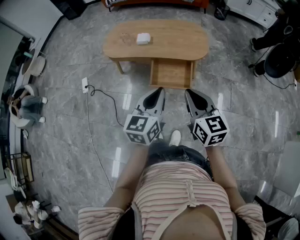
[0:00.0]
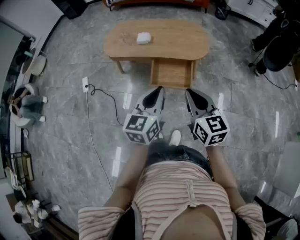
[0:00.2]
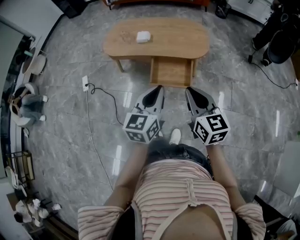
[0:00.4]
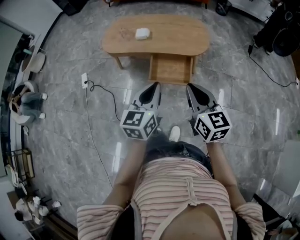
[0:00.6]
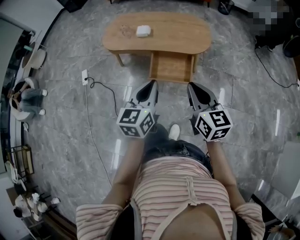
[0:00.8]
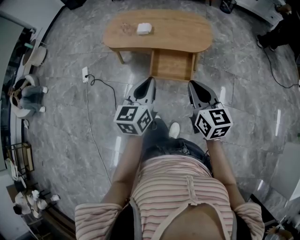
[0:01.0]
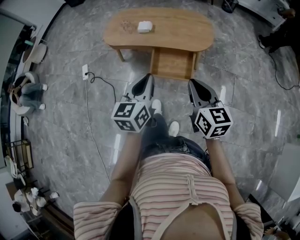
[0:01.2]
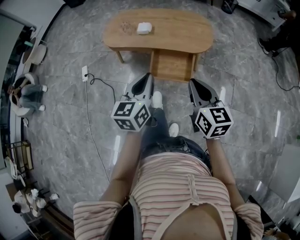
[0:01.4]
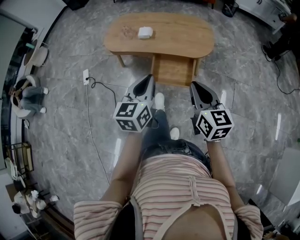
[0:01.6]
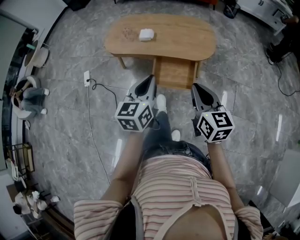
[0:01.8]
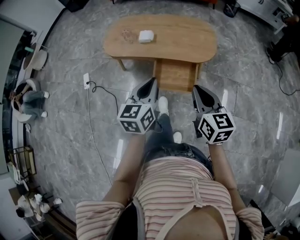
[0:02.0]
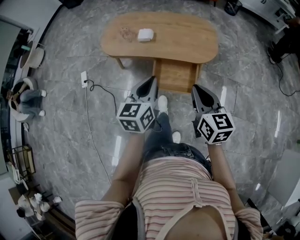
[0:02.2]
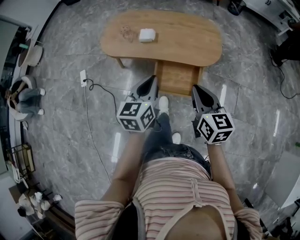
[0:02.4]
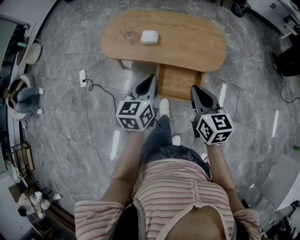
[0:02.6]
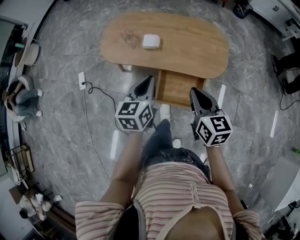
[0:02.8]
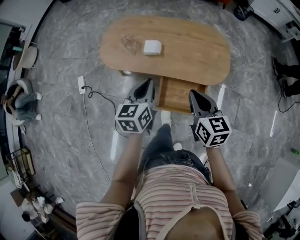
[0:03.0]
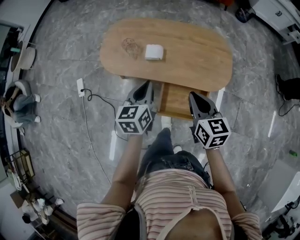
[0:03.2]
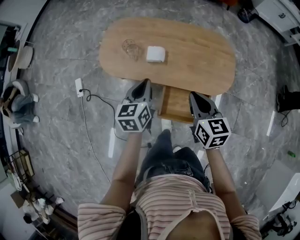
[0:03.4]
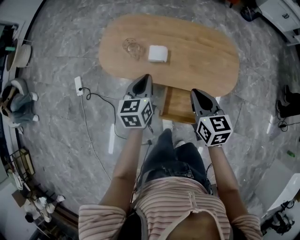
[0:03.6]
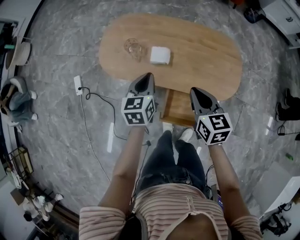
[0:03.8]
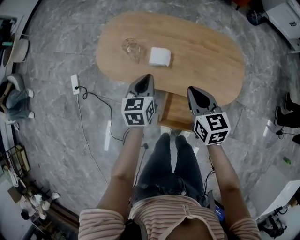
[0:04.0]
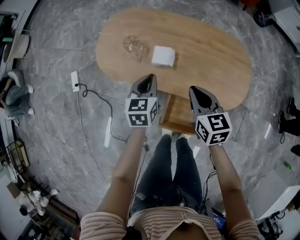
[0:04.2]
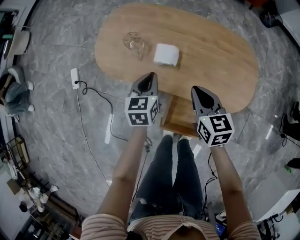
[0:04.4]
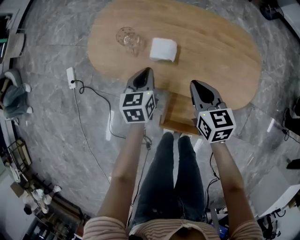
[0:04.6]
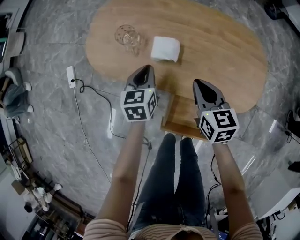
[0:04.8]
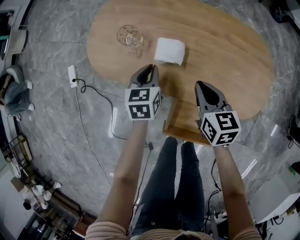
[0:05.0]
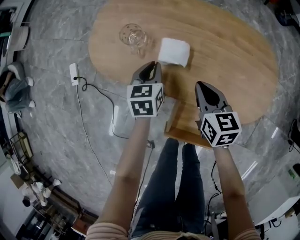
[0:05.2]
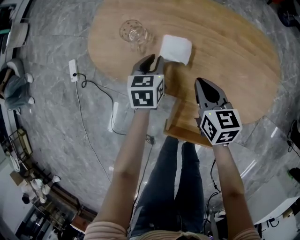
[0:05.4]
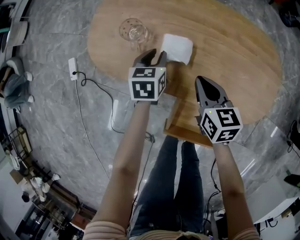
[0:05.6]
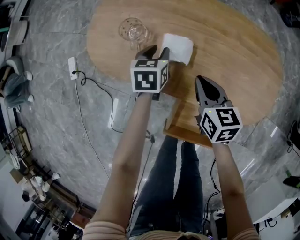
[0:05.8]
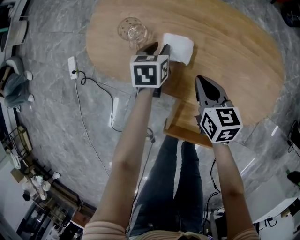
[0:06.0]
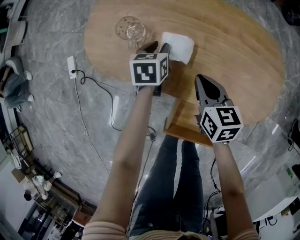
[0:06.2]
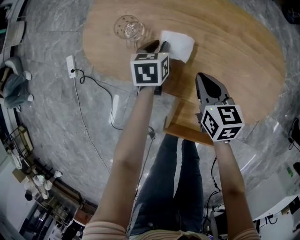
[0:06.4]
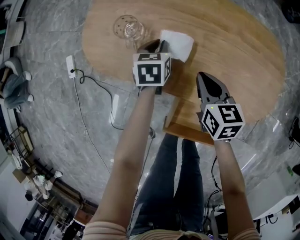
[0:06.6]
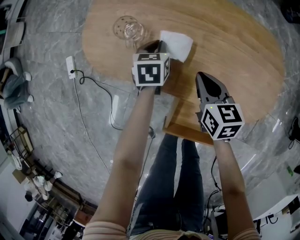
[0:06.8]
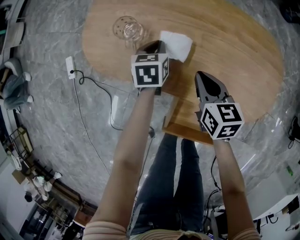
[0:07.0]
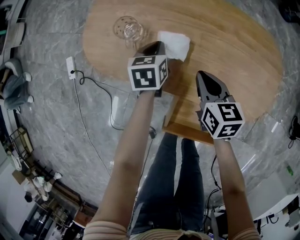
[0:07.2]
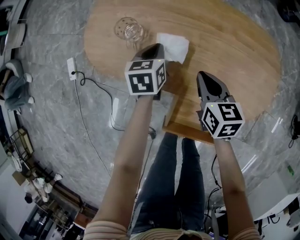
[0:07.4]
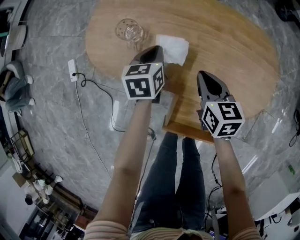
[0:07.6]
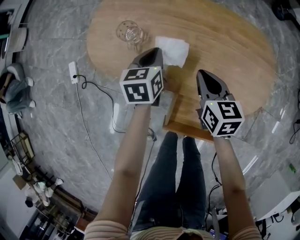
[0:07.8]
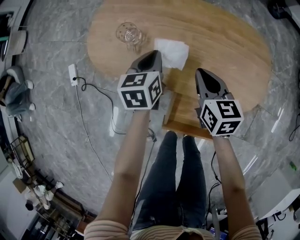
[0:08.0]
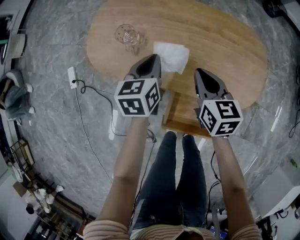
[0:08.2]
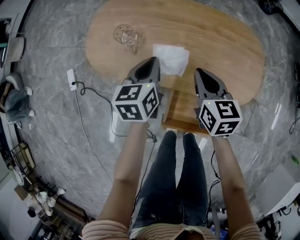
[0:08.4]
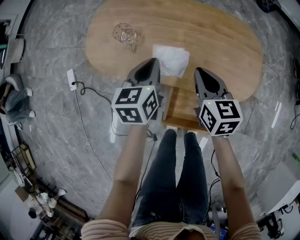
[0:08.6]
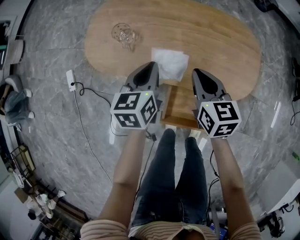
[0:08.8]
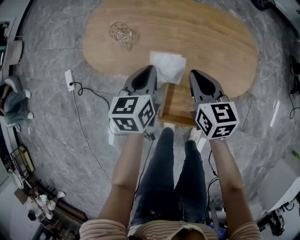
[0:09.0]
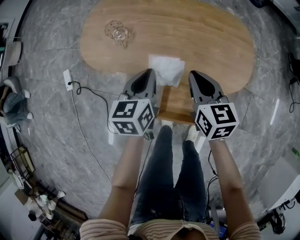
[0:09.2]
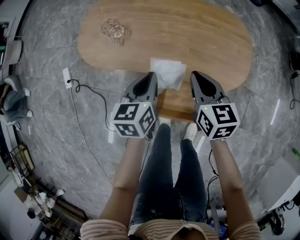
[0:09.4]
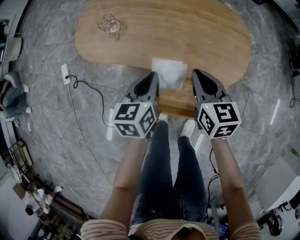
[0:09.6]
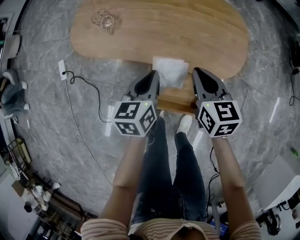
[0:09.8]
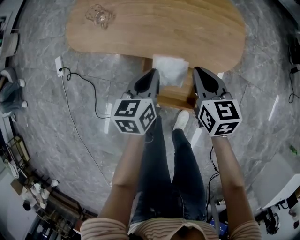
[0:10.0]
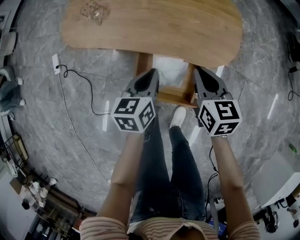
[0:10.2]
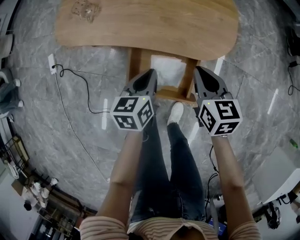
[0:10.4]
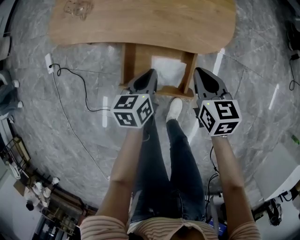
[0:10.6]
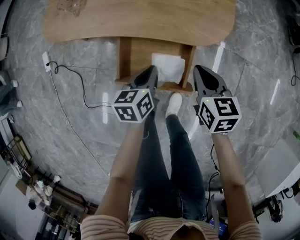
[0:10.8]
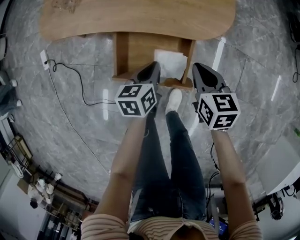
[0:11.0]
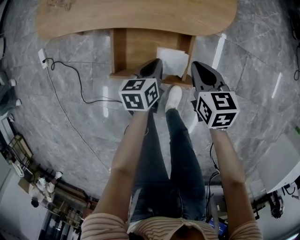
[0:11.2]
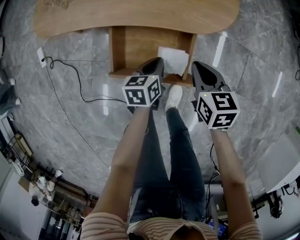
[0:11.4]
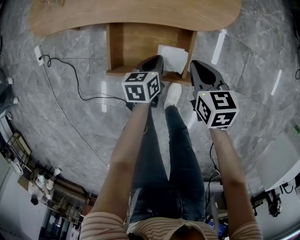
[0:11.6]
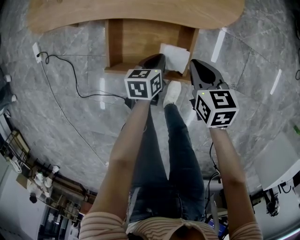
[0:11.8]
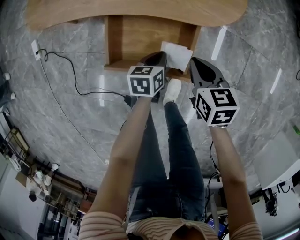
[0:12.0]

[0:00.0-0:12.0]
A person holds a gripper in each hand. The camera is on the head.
0:00.0 to 0:01.6: Both grippers travel together forward, some 5 cm.
0:01.6 to 0:03.0: The grippers both shift forward by roughly 25 cm.
0:03.0 to 0:04.4: The right gripper is displaced forward and downward by roughly 25 cm; the left gripper goes roughly 30 cm downward and forward.
0:04.4 to 0:06.0: Both grippers travel together downward and forward, some 15 cm. The left gripper opens up.
0:06.0 to 0:07.6: The left gripper is displaced upward by about 5 cm, and closes up.
0:07.6 to 0:09.0: The left gripper is displaced backward and upward by about 15 cm. The right gripper shifts about 10 cm upward and backward.
0:09.0 to 0:10.4: The right gripper is displaced to the right and backward by approximately 25 cm, while the left gripper goes some 25 cm to the right, backward and downward.
0:10.4 to 0:12.0: The right gripper goes approximately 15 cm downward and backward, while the left gripper moves downward, some 20 cm.

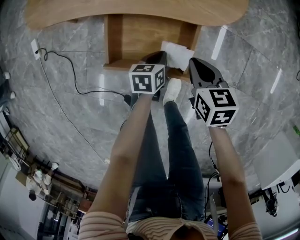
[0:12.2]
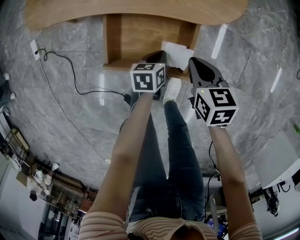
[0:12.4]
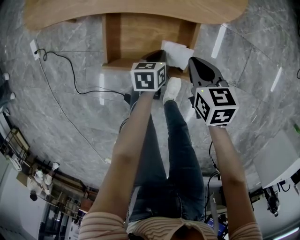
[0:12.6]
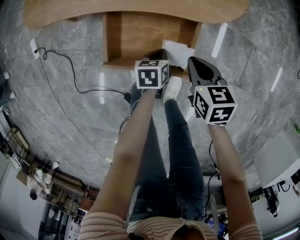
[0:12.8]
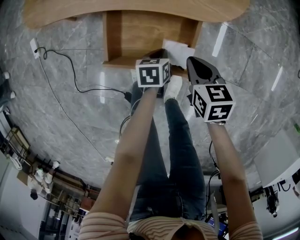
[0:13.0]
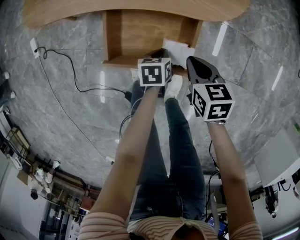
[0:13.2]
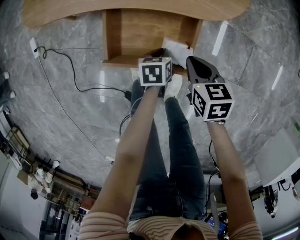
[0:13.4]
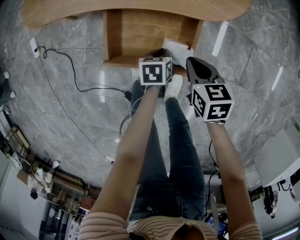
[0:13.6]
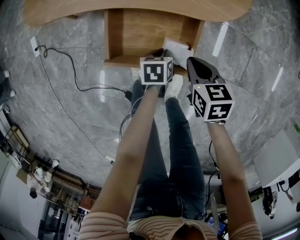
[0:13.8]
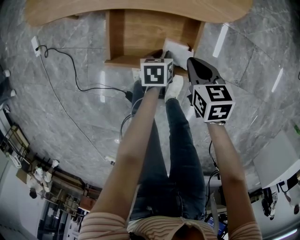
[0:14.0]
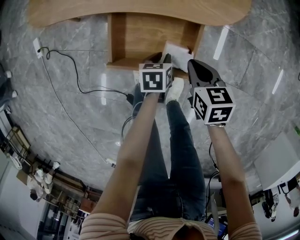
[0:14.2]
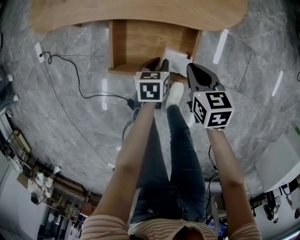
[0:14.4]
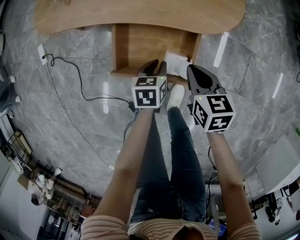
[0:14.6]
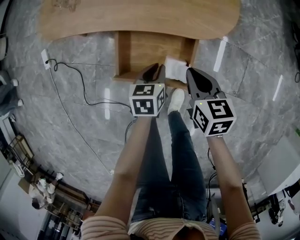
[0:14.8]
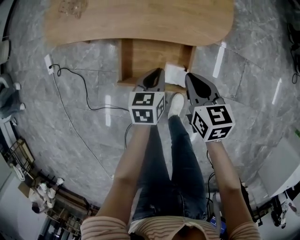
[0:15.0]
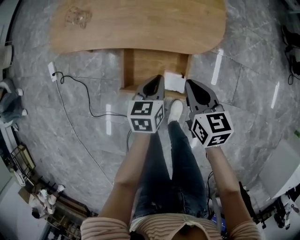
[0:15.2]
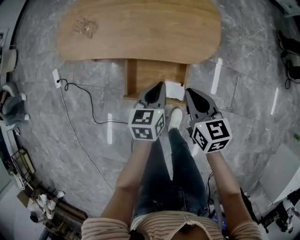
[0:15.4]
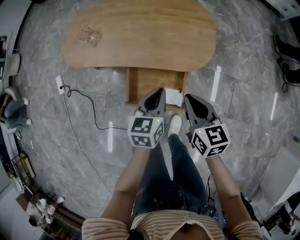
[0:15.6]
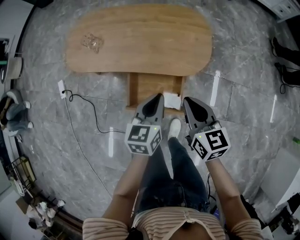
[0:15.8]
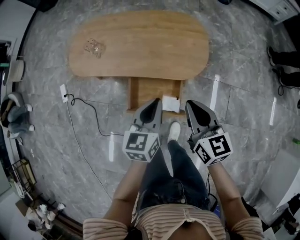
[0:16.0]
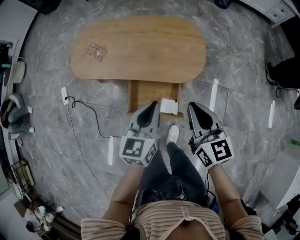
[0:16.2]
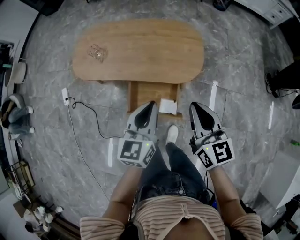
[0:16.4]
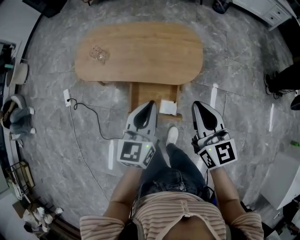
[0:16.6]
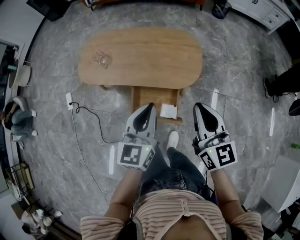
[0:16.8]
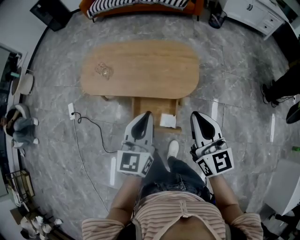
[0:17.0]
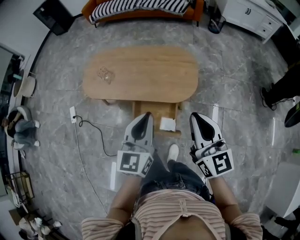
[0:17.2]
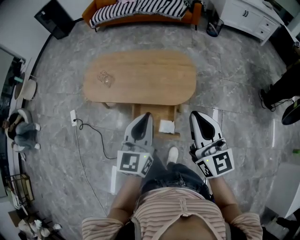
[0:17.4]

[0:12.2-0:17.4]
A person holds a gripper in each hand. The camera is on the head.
0:12.2 to 0:14.0: The grippers move only a little.
0:14.0 to 0:15.6: Both grippers travel together upward, approximately 30 cm. The right gripper turns by some 20 degrees, while the left gripper turns by about 30 degrees.
0:15.6 to 0:17.4: Both grippers travel together upward, roughly 25 cm. The left gripper rotates some 30 degrees; the right gripper tilts its fingers approximately 30 degrees upward.

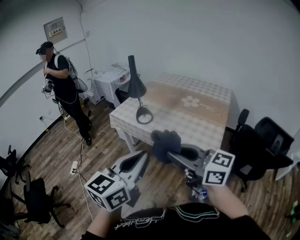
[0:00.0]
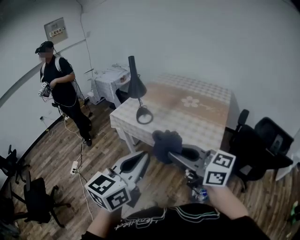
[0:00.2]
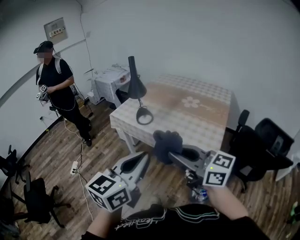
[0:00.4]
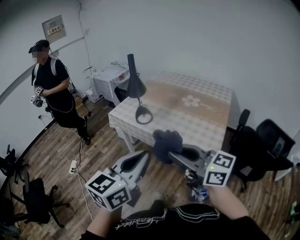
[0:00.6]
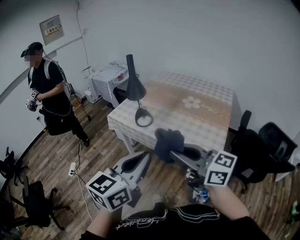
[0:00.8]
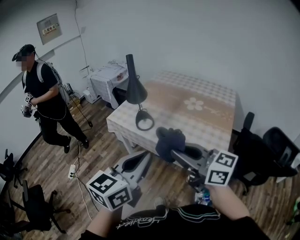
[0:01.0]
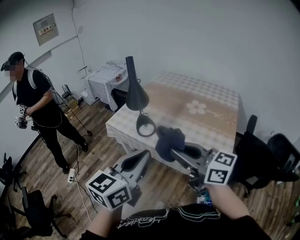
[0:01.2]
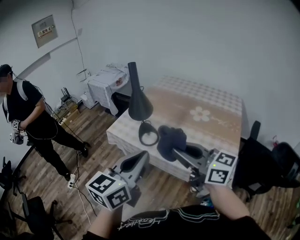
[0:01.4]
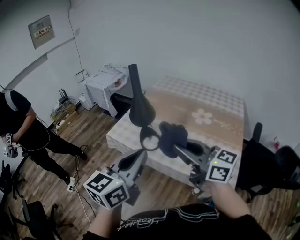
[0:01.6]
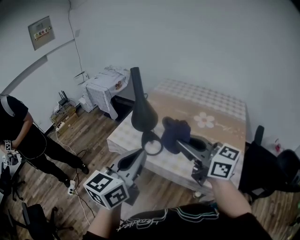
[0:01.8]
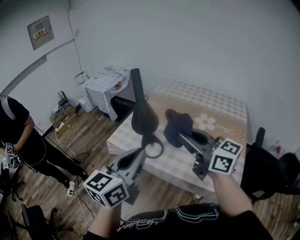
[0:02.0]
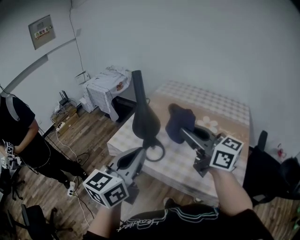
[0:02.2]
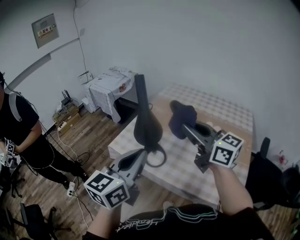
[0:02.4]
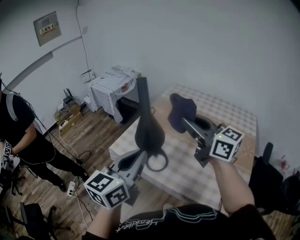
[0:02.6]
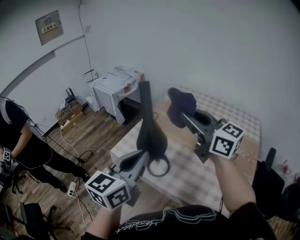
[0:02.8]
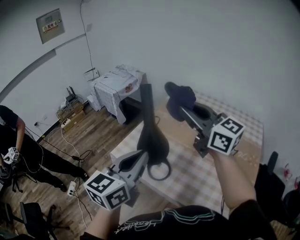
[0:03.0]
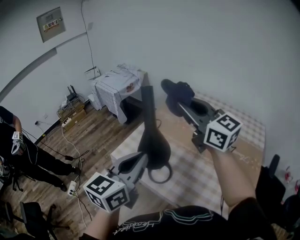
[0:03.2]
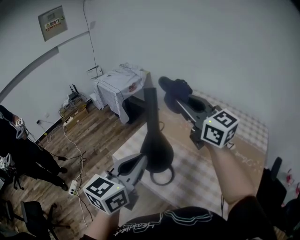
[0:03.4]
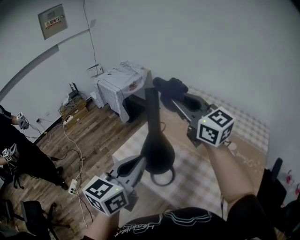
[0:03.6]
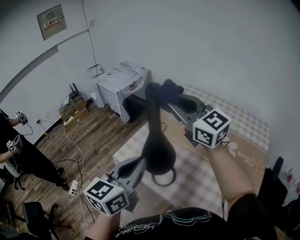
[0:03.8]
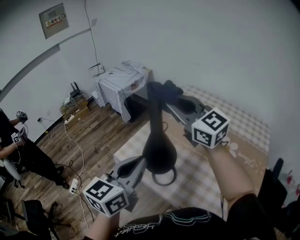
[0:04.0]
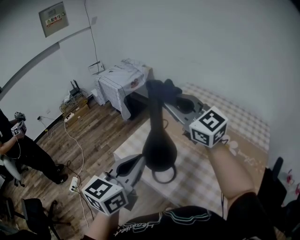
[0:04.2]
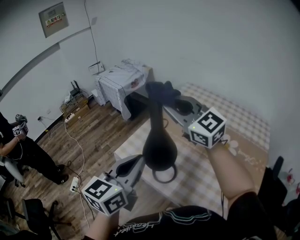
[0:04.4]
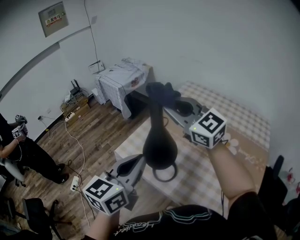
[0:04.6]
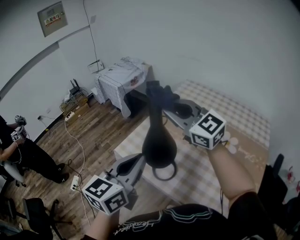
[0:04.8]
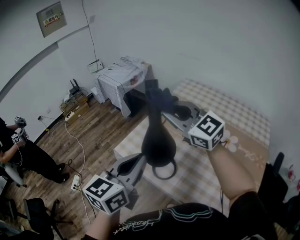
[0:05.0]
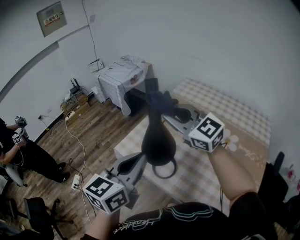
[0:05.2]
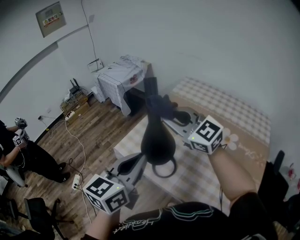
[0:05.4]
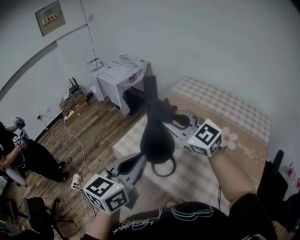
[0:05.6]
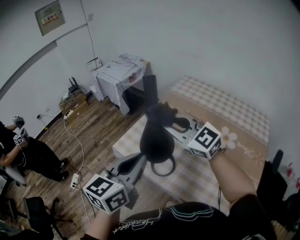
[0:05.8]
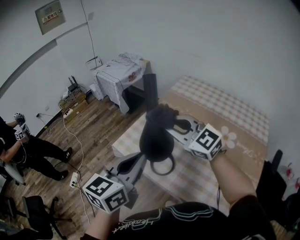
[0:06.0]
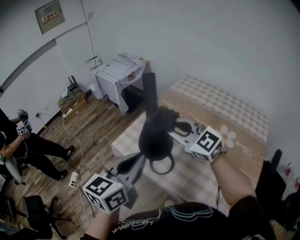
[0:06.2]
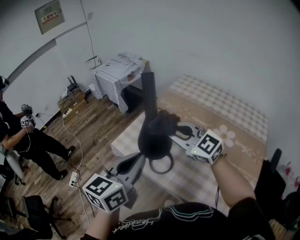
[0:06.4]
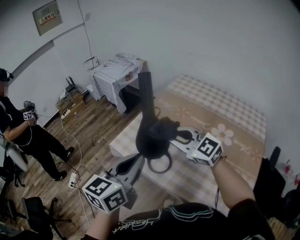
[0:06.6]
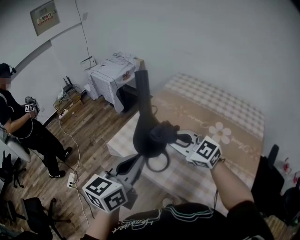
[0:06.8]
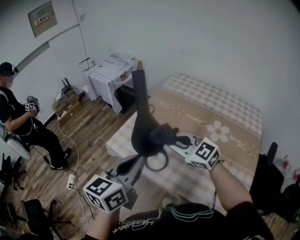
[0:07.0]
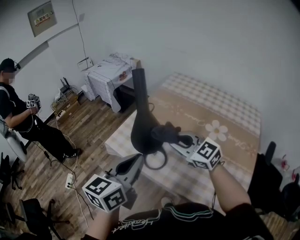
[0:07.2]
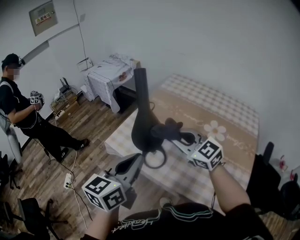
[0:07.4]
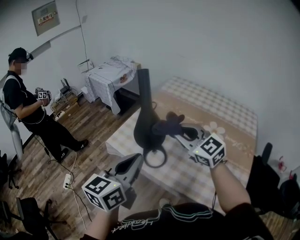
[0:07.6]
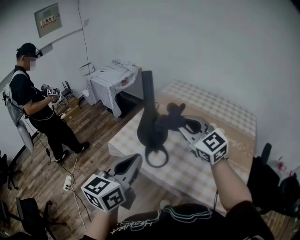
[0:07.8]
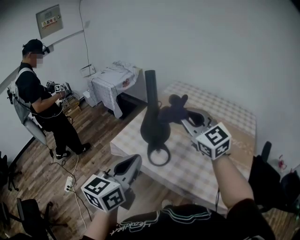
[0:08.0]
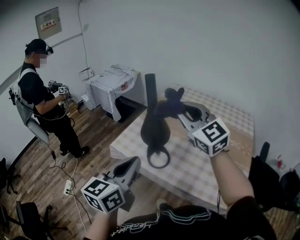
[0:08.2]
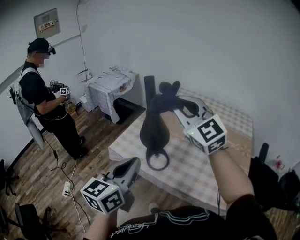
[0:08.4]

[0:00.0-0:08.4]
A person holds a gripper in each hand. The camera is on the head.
0:00.0 to 0:01.4: The grippers both shift forward by some 25 cm.
0:01.4 to 0:02.8: Both grippers move forward, some 25 cm.
0:02.8 to 0:04.2: The right gripper shifts roughly 15 cm forward and to the left, and rotates roughly 20 degrees; the left gripper travels forward by roughly 5 cm.
0:04.2 to 0:05.6: The right gripper shifts approximately 10 cm downward and backward.
0:05.6 to 0:07.0: The right gripper shifts about 15 cm downward and backward.
0:07.0 to 0:08.4: The left gripper shifts about 10 cm backward and to the left, while the right gripper heads upward, covering about 20 cm, and rotates some 30 degrees.
